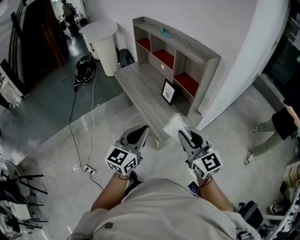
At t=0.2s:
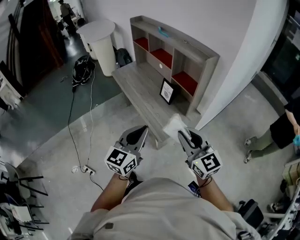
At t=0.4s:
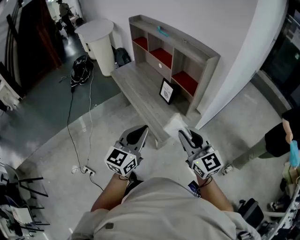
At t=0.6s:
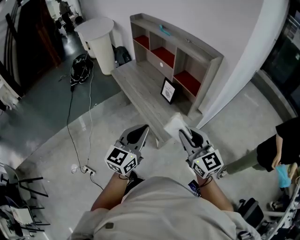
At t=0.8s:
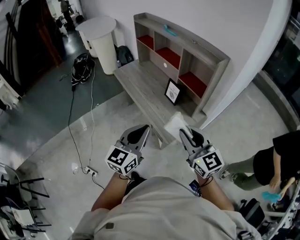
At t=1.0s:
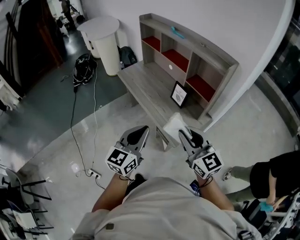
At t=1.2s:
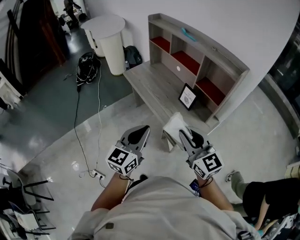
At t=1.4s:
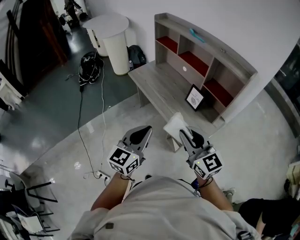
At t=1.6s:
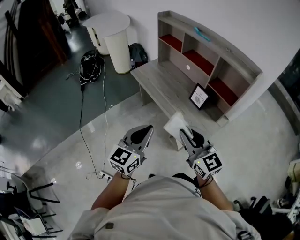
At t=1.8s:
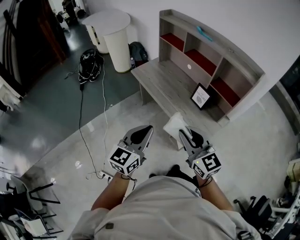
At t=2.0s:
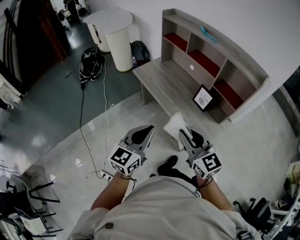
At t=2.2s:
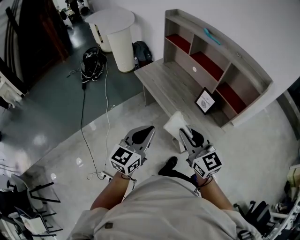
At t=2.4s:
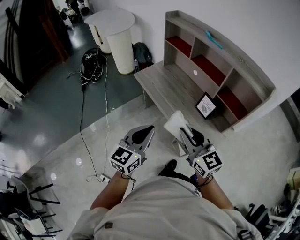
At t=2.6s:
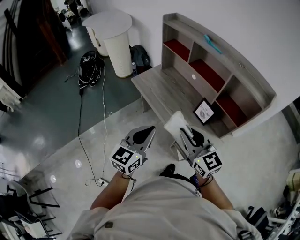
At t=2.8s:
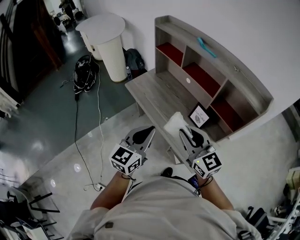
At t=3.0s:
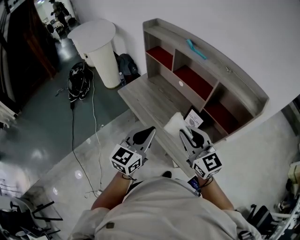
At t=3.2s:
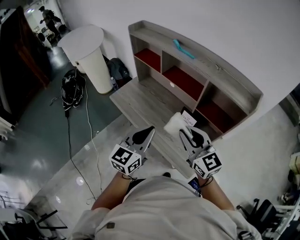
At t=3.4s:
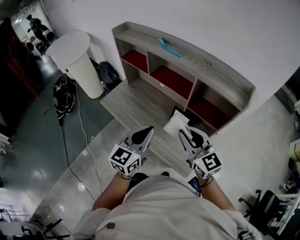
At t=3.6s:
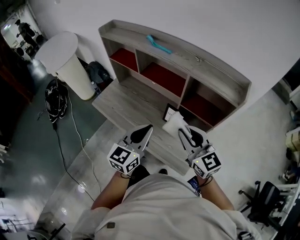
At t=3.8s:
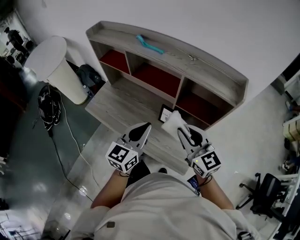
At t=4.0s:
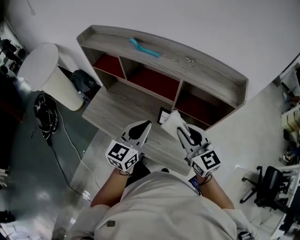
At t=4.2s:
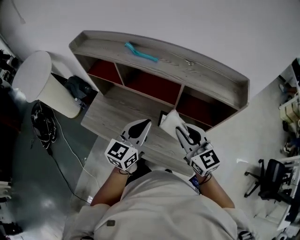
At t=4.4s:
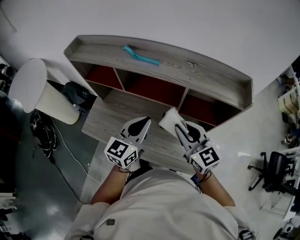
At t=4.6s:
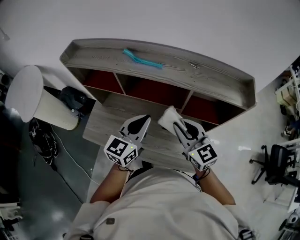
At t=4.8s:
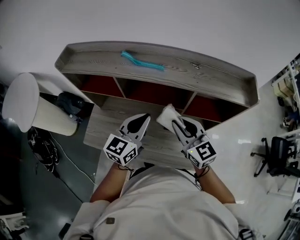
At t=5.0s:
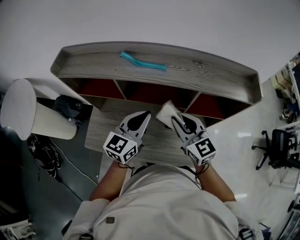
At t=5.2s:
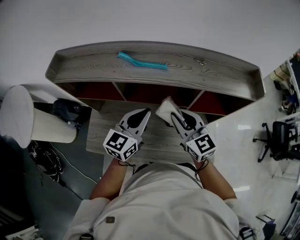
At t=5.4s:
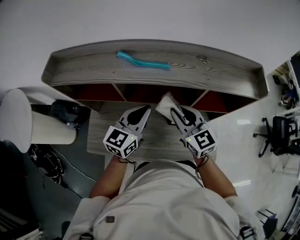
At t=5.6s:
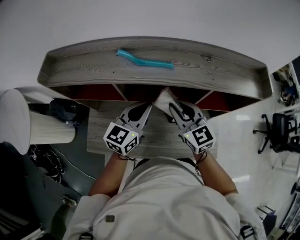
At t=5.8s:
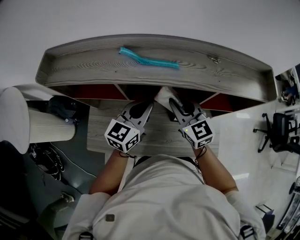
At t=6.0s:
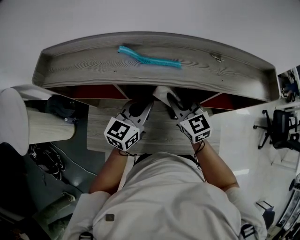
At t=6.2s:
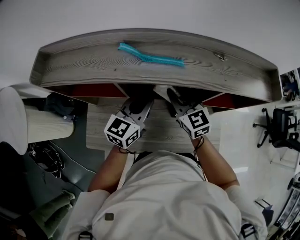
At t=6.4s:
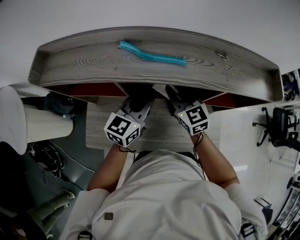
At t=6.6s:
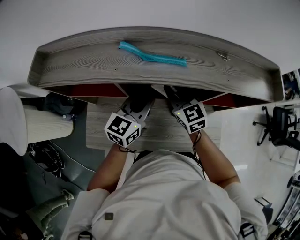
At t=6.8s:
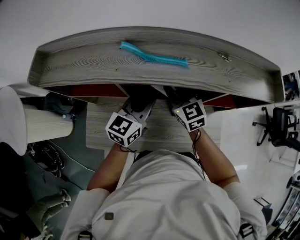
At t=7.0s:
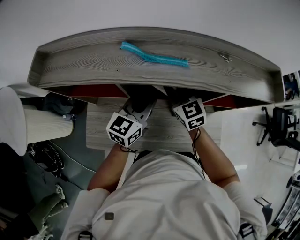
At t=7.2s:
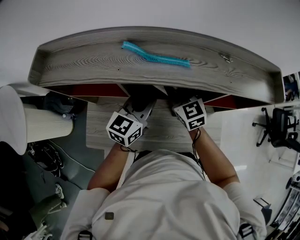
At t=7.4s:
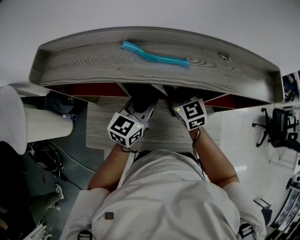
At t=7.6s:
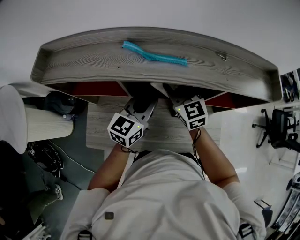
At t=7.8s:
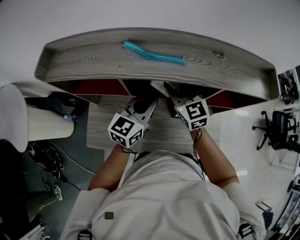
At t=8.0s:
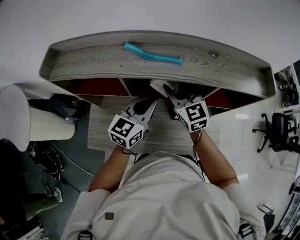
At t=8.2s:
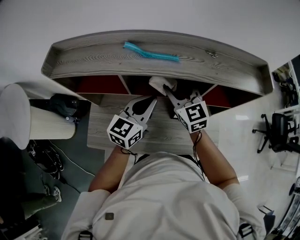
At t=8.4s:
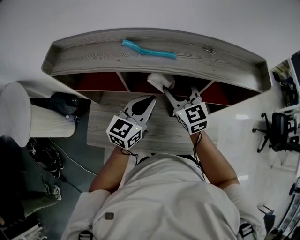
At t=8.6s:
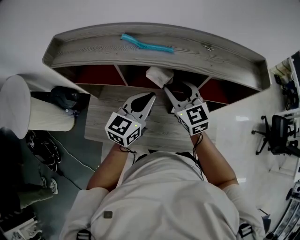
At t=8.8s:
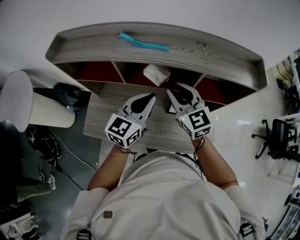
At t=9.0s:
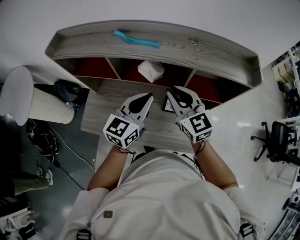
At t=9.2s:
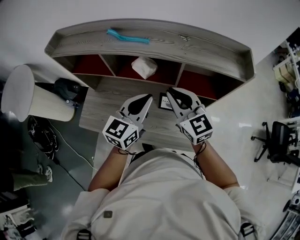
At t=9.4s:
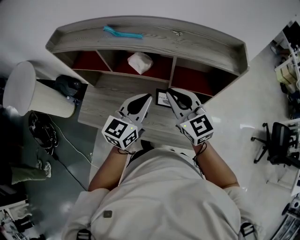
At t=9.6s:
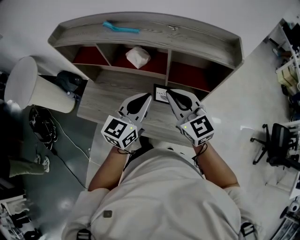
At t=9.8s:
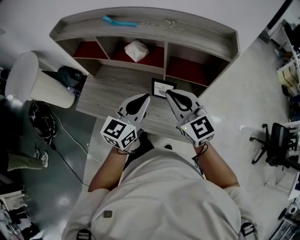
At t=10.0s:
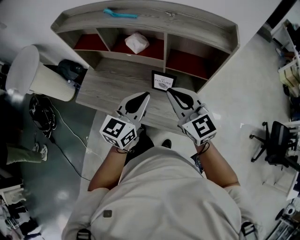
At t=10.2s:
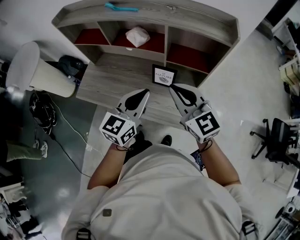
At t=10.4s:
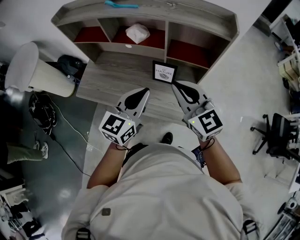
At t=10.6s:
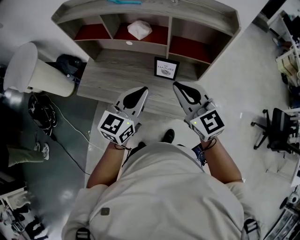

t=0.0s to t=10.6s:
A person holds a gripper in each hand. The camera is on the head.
t=0.0s to t=1.6s: The two grippers go roughly 30 cm to the left and forward.
t=1.6s to t=3.0s: The two grippers go roughly 25 cm forward.
t=3.0s to t=4.6s: The left gripper shifts by some 30 cm, and changes its angle by approximately 30 degrees; the right gripper moves roughly 20 cm, and swivels roughly 30 degrees.
t=4.6s to t=6.0s: The grippers both shift forward, to the left and downward by roughly 15 cm.
t=6.0s to t=7.6s: The right gripper opens.
t=7.6s to t=9.0s: Both grippers travel together backward, to the right and upward, approximately 15 cm. The right gripper closes up.
t=9.0s to t=10.6s: Both grippers move backward, roughly 20 cm.

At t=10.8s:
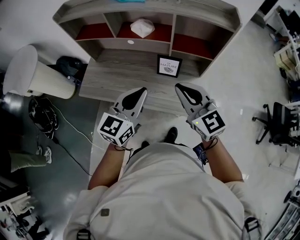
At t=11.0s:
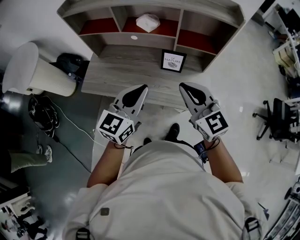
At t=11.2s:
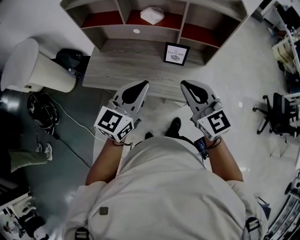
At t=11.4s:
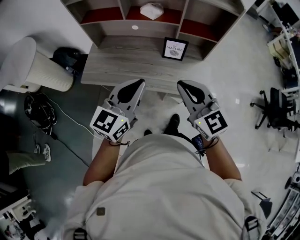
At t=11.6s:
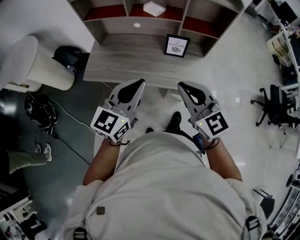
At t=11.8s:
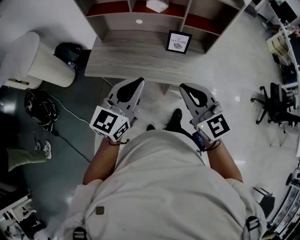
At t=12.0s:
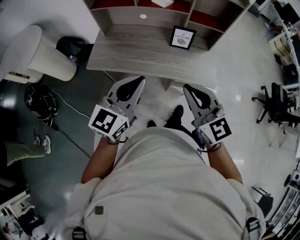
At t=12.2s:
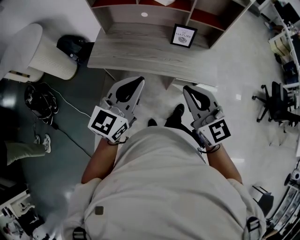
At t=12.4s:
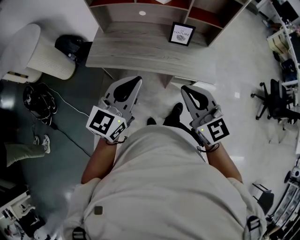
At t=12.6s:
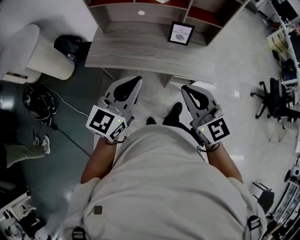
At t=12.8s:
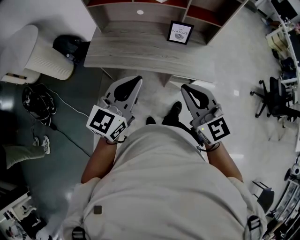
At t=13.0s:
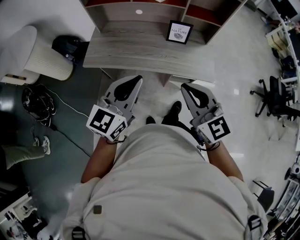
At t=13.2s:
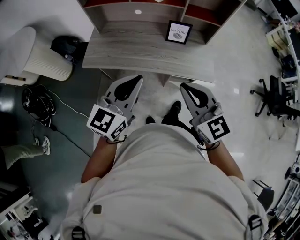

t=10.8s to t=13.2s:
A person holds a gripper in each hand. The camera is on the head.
t=10.8s to t=12.0s: Both grippers move backward and to the left, about 20 cm.
t=12.0s to t=13.2s: The grippers stay close to where they were, moving slightly.

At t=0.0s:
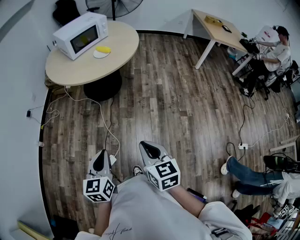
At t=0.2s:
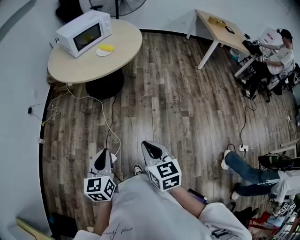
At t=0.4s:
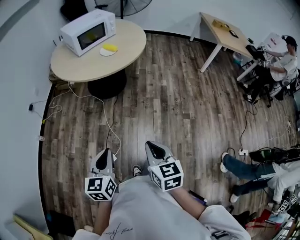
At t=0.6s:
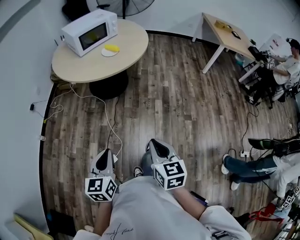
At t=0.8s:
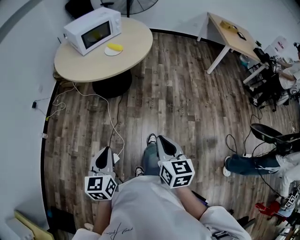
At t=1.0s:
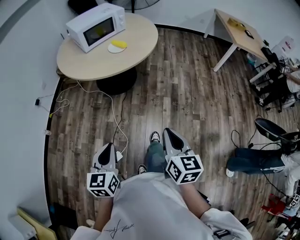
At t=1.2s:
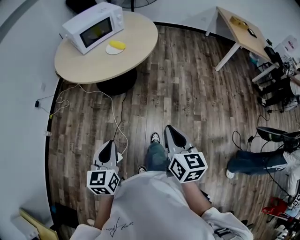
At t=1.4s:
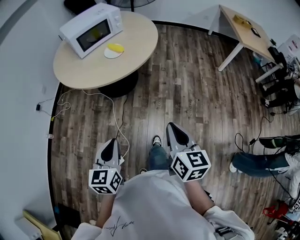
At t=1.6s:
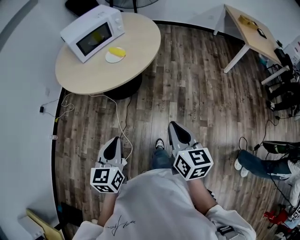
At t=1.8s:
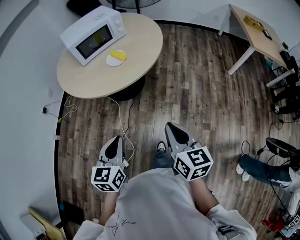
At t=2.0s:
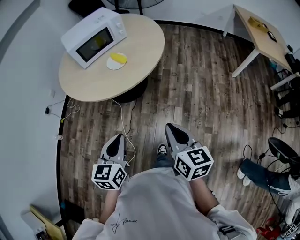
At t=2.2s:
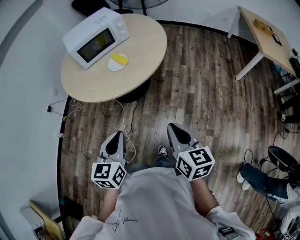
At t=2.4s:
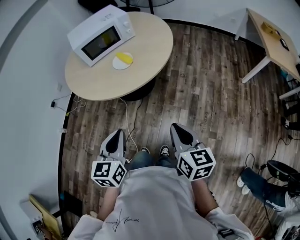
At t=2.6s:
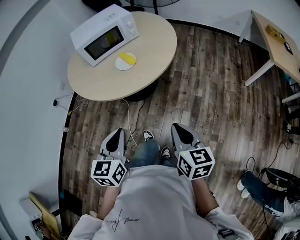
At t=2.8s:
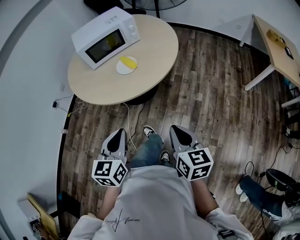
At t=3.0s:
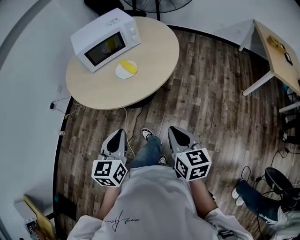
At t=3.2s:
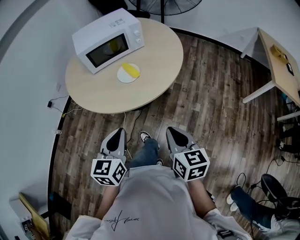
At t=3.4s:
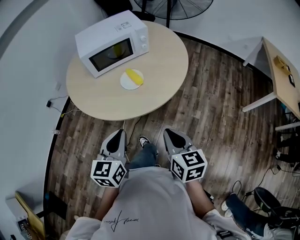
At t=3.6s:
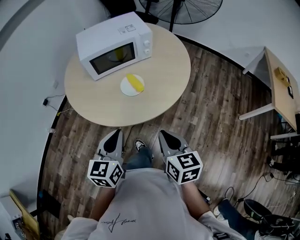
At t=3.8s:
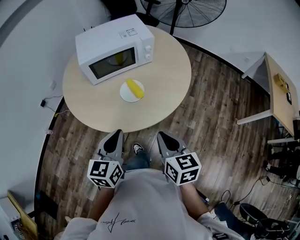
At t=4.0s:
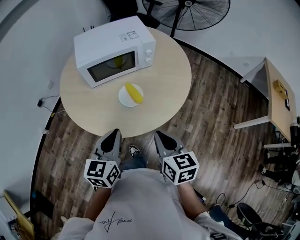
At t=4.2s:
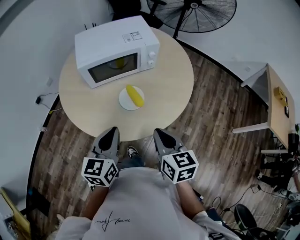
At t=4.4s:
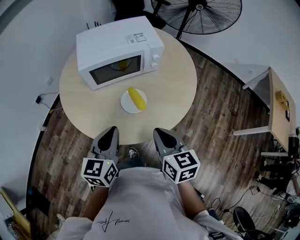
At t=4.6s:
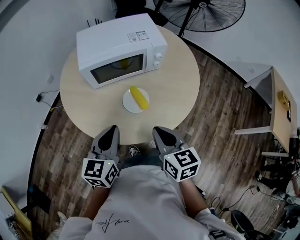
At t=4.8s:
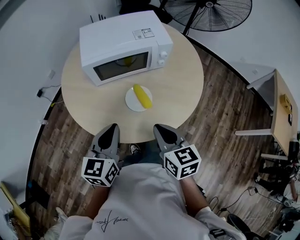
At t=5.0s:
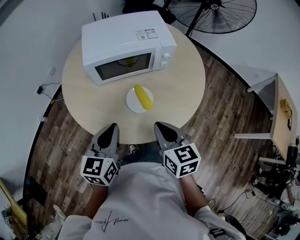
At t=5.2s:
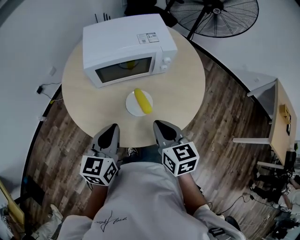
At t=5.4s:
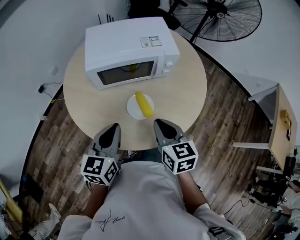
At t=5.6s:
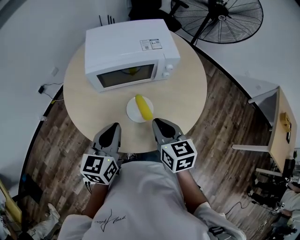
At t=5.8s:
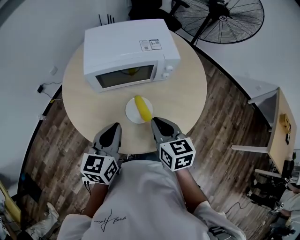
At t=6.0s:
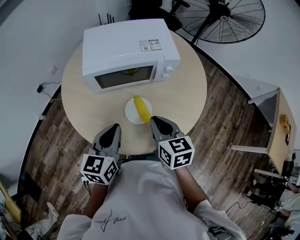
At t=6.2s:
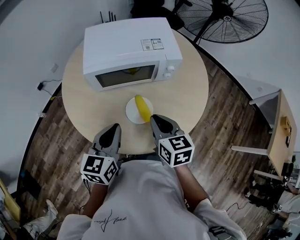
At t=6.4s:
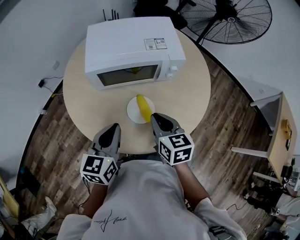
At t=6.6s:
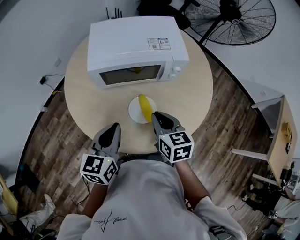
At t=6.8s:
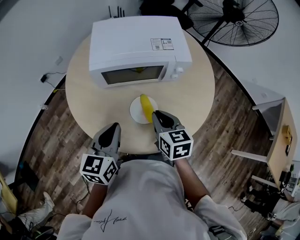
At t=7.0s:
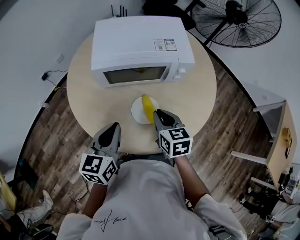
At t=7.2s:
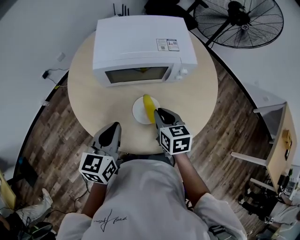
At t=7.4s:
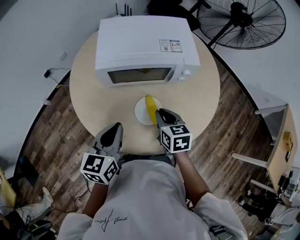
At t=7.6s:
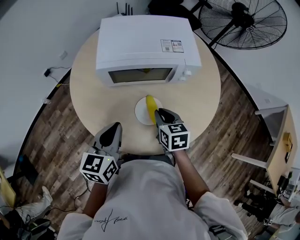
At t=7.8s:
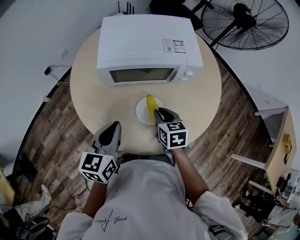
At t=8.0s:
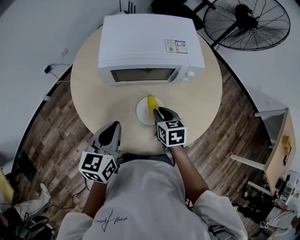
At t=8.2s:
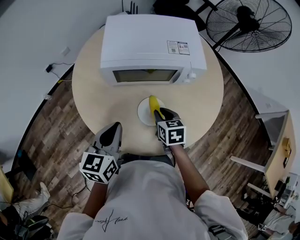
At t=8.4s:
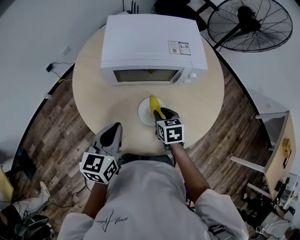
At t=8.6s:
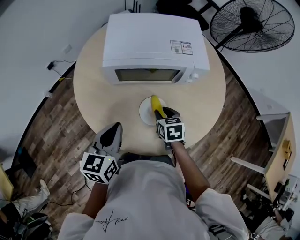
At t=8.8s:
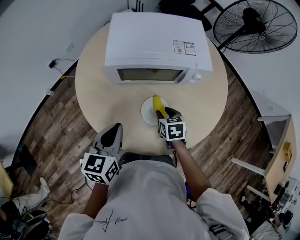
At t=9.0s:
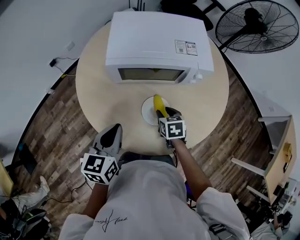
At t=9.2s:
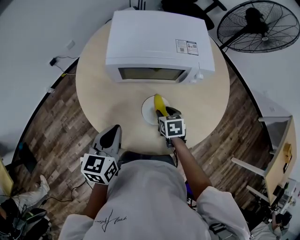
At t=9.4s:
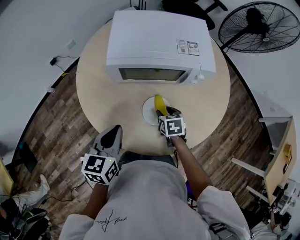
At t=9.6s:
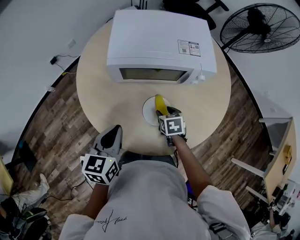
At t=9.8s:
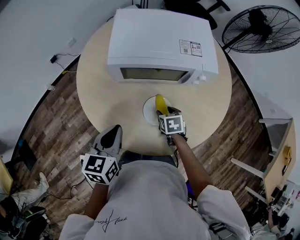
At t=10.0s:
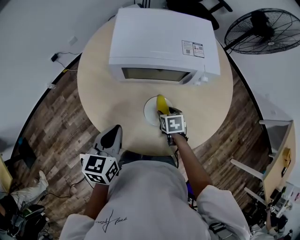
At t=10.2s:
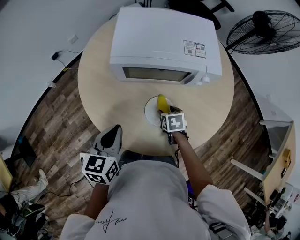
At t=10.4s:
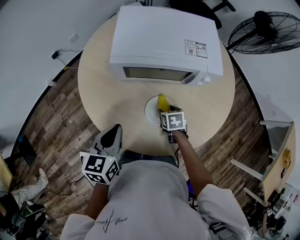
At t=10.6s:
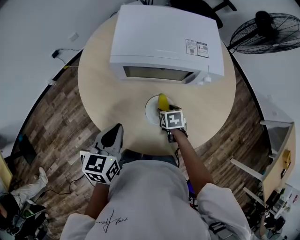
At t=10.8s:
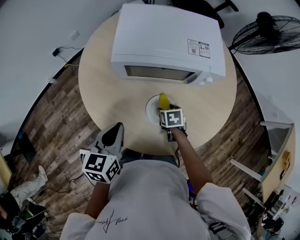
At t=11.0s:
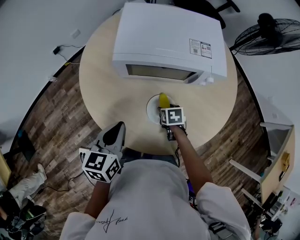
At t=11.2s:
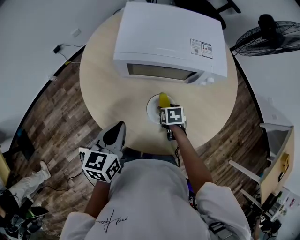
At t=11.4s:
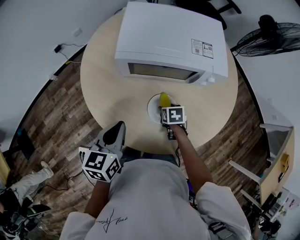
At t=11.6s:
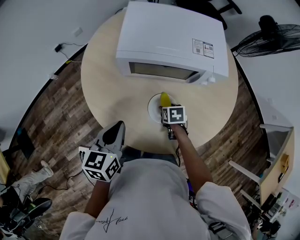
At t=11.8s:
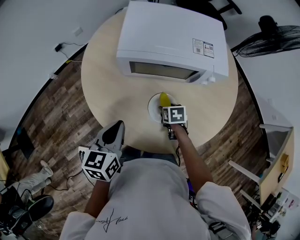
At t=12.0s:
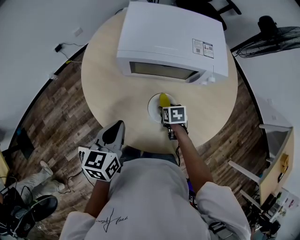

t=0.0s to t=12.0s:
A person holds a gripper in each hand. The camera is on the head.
t=0.0s to t=1.6s: The right gripper is displaced forward and to the right by about 30 cm, while the left gripper travels forward by about 25 cm.
t=1.6s to t=3.0s: The left gripper is displaced forward and to the right by approximately 20 cm, while the right gripper moves forward, roughly 20 cm.
t=3.0s to t=4.4s: Both grippers travel together forward, approximately 30 cm.
t=4.4s to t=6.0s: The right gripper is displaced forward by roughly 15 cm. Meanwhile the left gripper moves forward, some 10 cm.
t=6.0s to t=7.6s: The right gripper goes approximately 10 cm downward and forward.
t=7.6s to t=9.0s: The right gripper moves downward, some 10 cm, and opens its fingers.
t=9.0s to t=10.4s: The right gripper is displaced downward by roughly 5 cm.
t=10.4s to t=12.0s: There are only small adjustments of the grippers.
